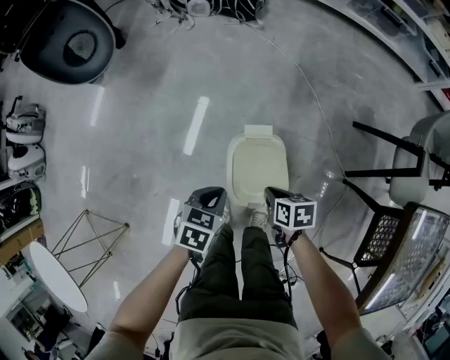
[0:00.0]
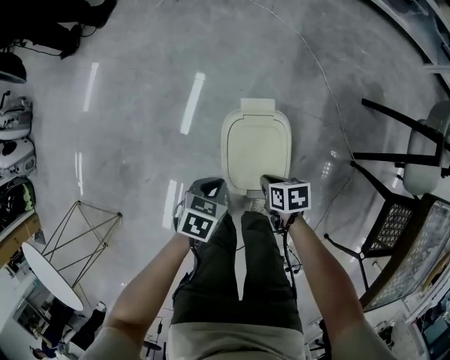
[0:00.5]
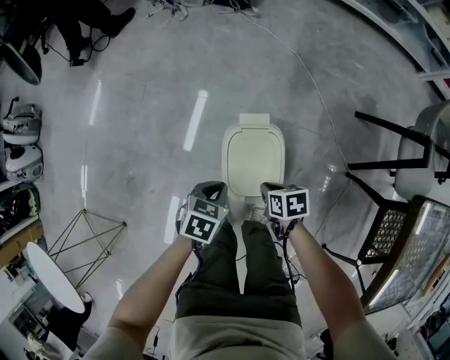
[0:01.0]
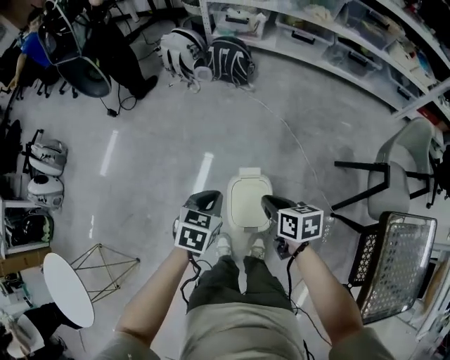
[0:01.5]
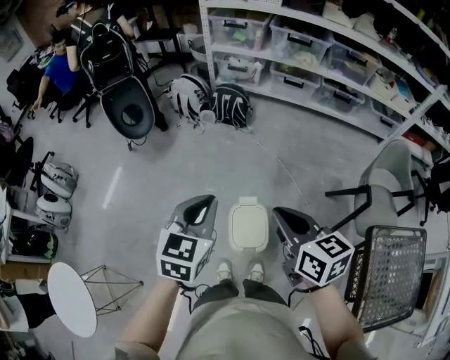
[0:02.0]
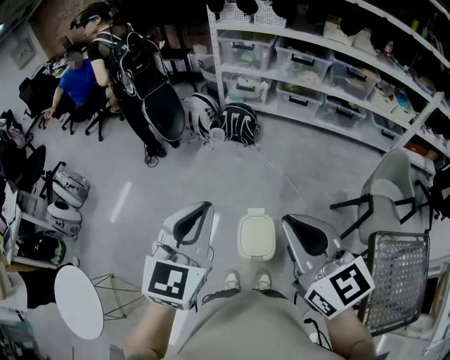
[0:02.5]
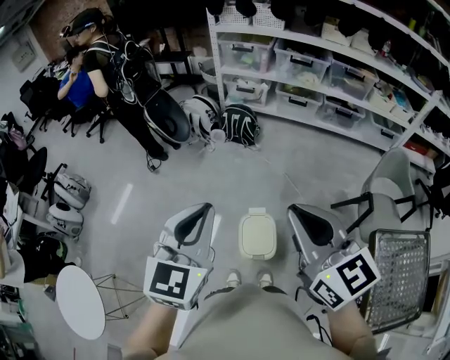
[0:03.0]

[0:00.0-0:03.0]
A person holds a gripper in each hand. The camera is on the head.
0:00.0 to 0:01.5: Both grippers travel together upward, roughly 20 cm. The right gripper turns by approximately 20 degrees.
0:01.5 to 0:03.0: The two grippers go about 40 cm upward. The left gripper tilts its fingers about 40 degrees upward, while the right gripper angles its fingers upward, by roughly 40 degrees.

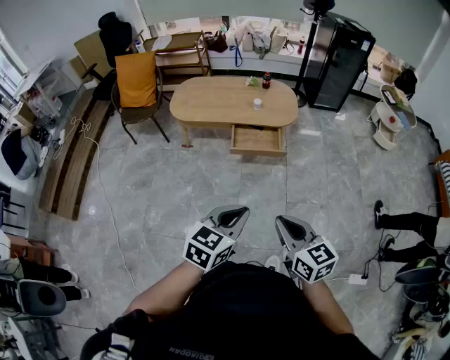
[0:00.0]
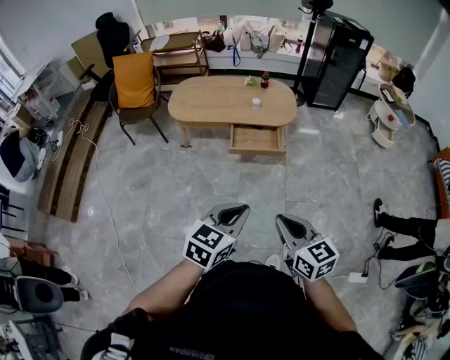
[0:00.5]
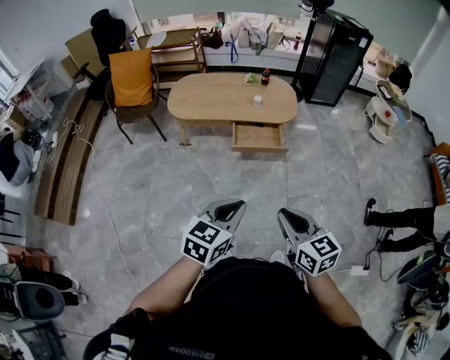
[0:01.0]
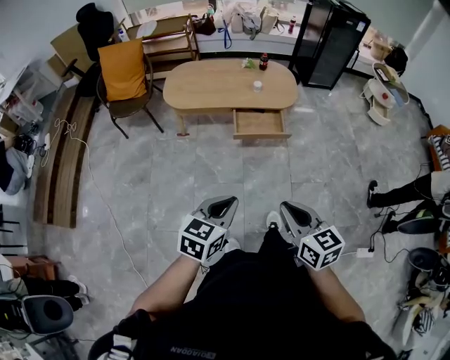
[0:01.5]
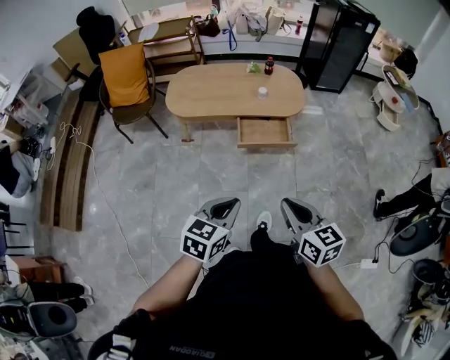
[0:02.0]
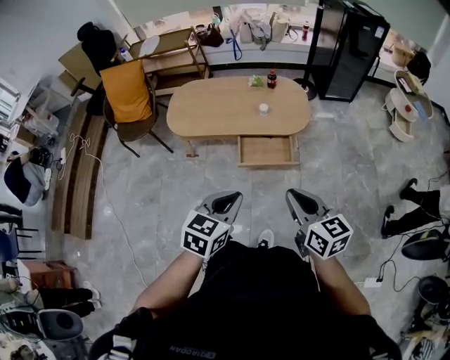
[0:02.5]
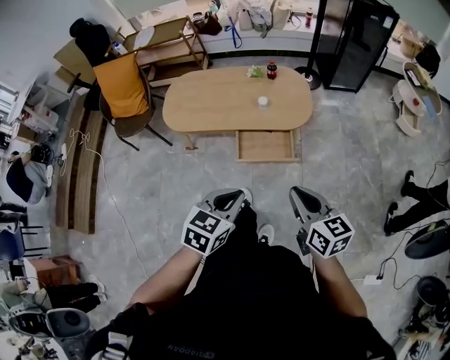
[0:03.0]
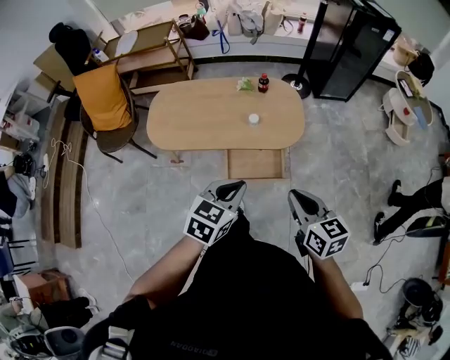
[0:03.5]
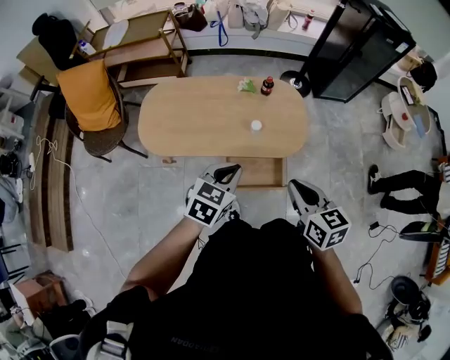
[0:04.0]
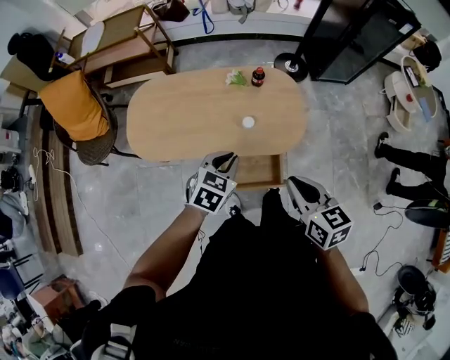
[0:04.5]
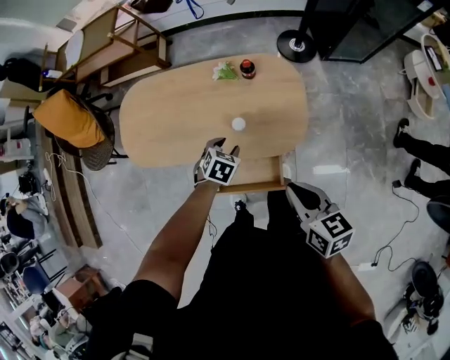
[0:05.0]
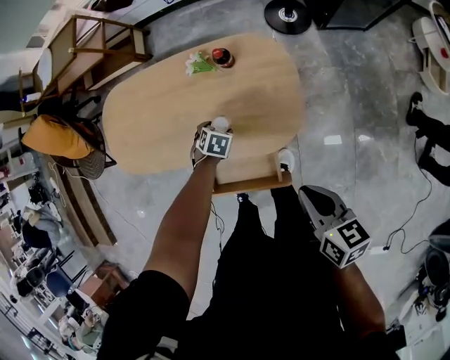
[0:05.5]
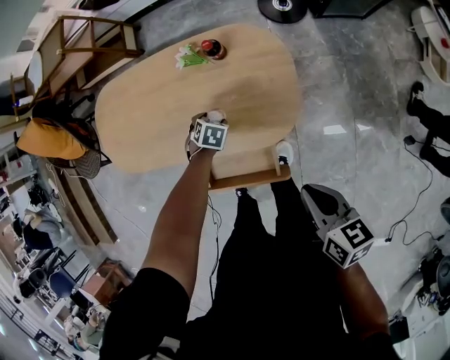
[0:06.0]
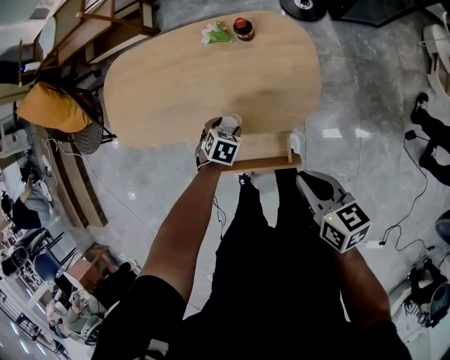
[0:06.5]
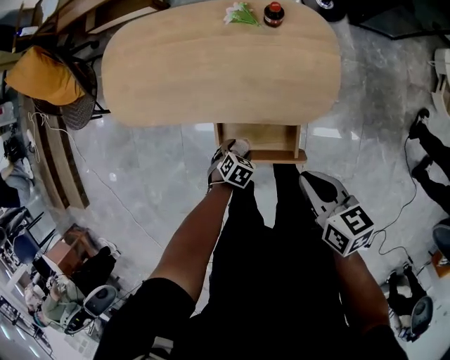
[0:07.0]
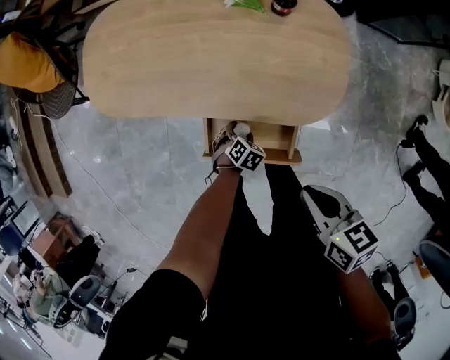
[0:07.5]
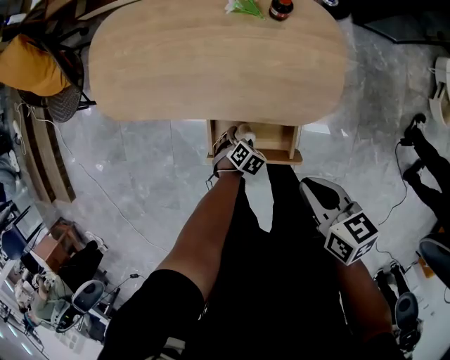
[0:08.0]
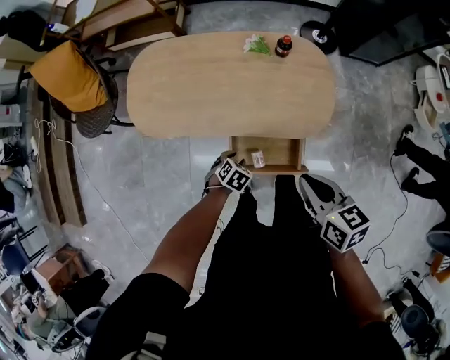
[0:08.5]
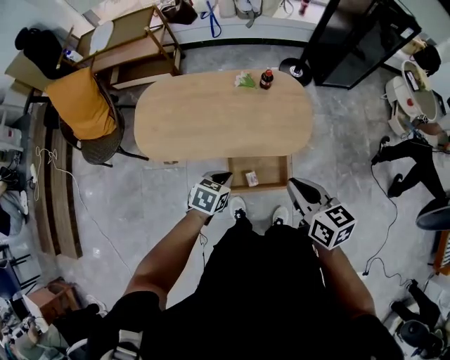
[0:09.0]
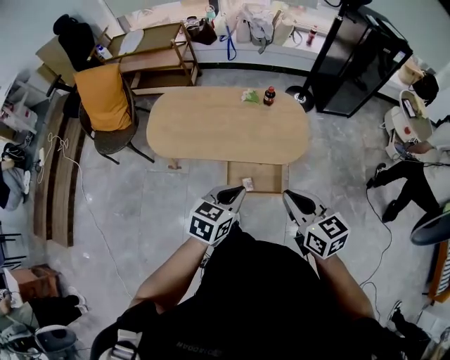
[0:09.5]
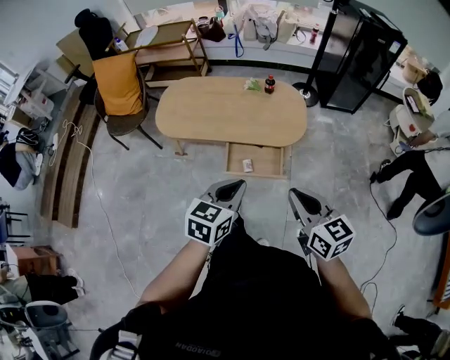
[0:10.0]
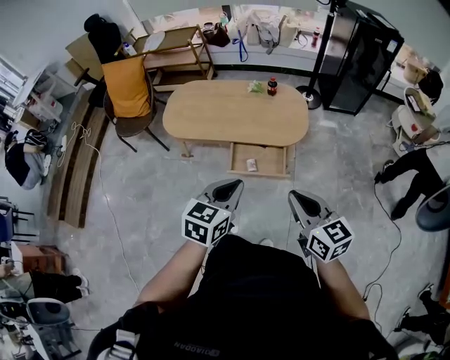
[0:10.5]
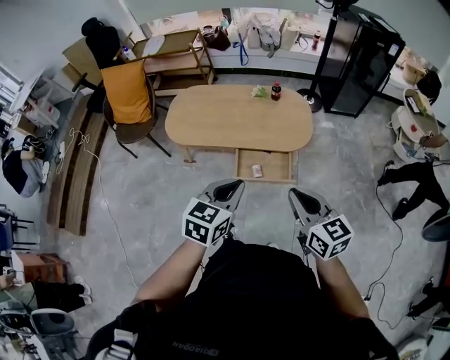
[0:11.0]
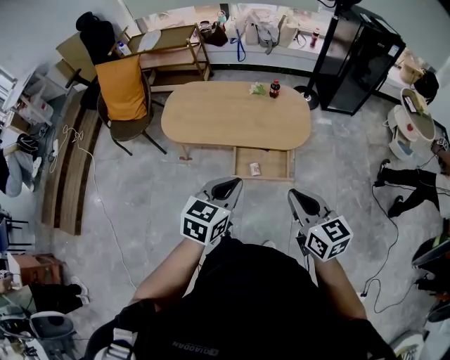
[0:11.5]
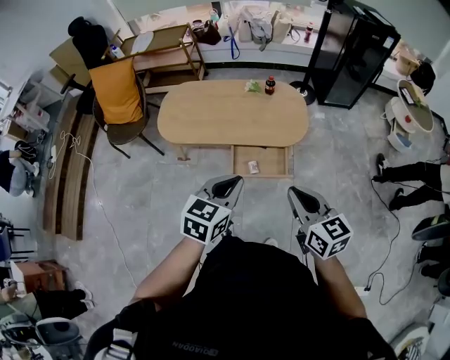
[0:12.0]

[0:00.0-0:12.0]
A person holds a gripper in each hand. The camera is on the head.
0:00.0 to 0:02.0: The left gripper shifts about 15 cm to the left, forward and downward. Meanwhile the right gripper heads forward and to the left, covering roughly 15 cm.
0:02.0 to 0:04.0: Both grippers are carried forward, roughly 50 cm.
0:04.0 to 0:06.0: The right gripper ends up about 30 cm from where it was, and turns by approximately 20 degrees. The left gripper moves downward, about 40 cm, points its fingers roughly 40 degrees further downward, and opens.
0:06.0 to 0:08.0: The left gripper shifts by some 25 cm; the right gripper shifts by some 15 cm.
0:08.0 to 0:10.0: The left gripper moves upward, some 60 cm, tips its fingers upward by some 50 degrees, and closes its fingers, while the right gripper moves roughly 40 cm, and changes its angle by roughly 40 degrees.
0:10.0 to 0:12.0: The two grippers go some 5 cm to the left.

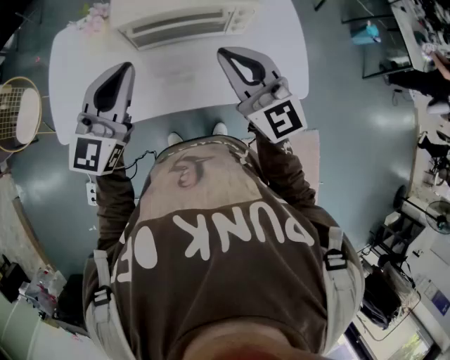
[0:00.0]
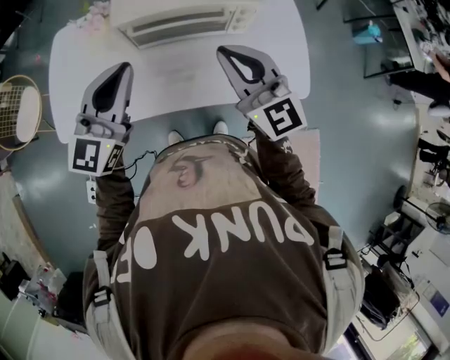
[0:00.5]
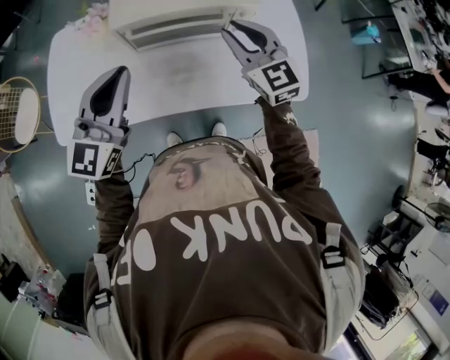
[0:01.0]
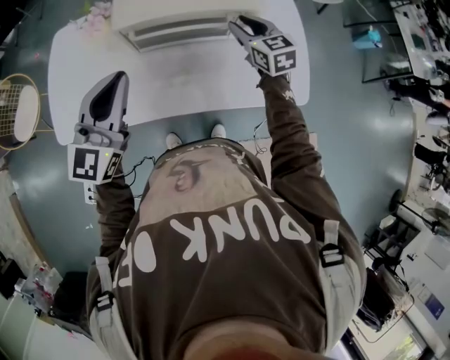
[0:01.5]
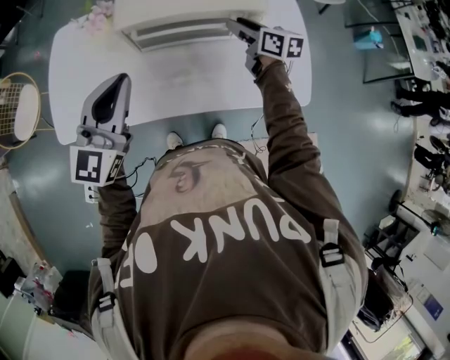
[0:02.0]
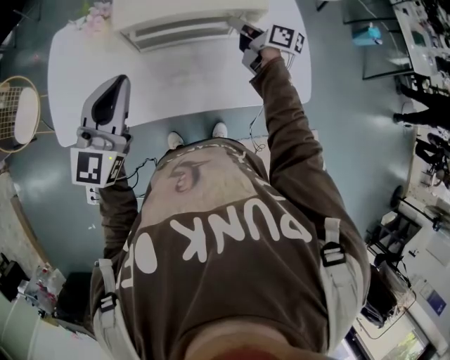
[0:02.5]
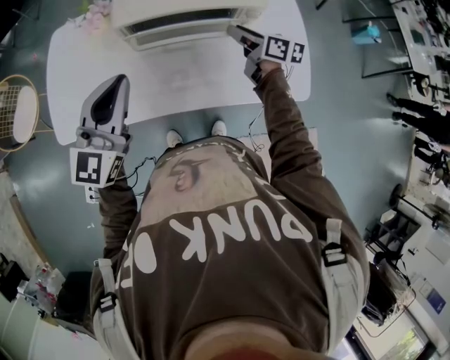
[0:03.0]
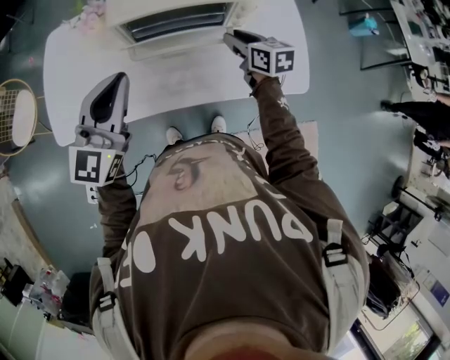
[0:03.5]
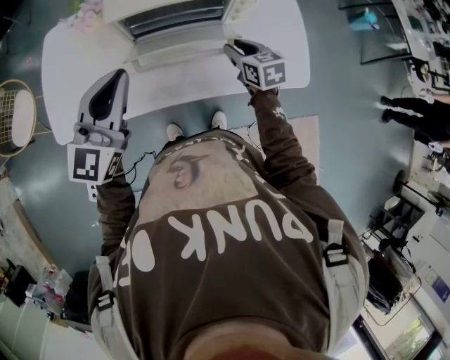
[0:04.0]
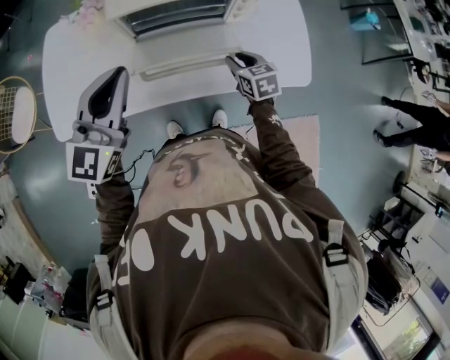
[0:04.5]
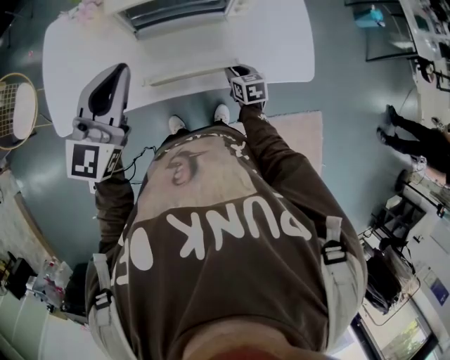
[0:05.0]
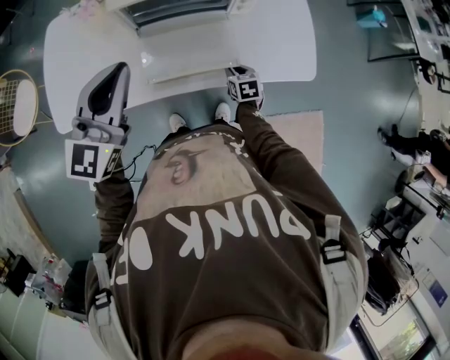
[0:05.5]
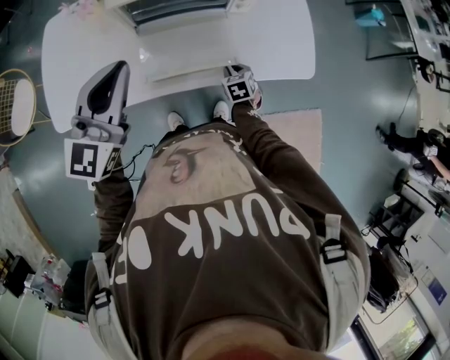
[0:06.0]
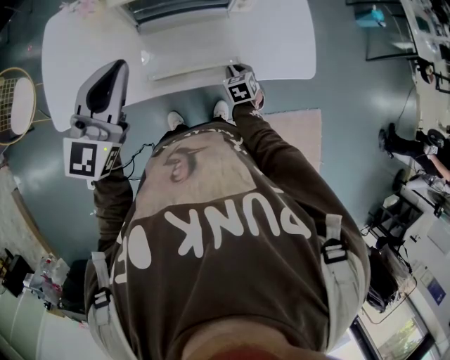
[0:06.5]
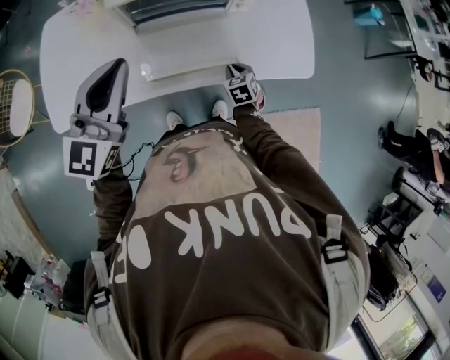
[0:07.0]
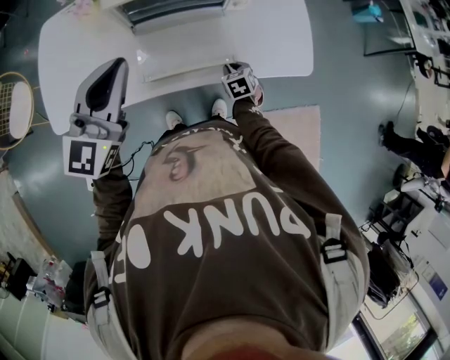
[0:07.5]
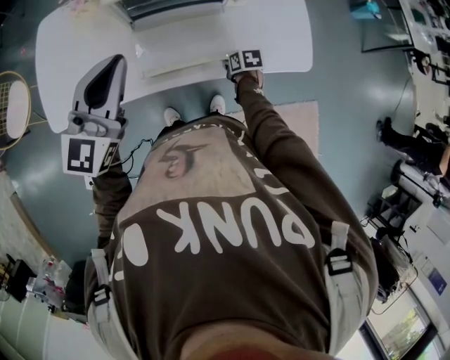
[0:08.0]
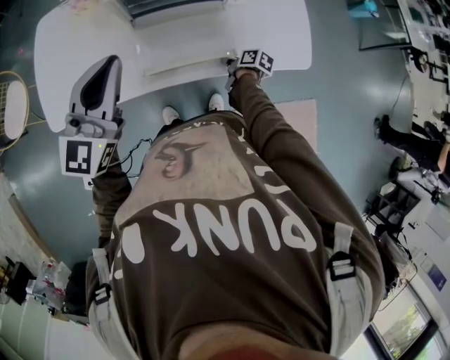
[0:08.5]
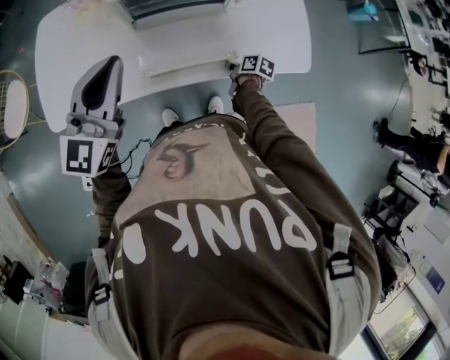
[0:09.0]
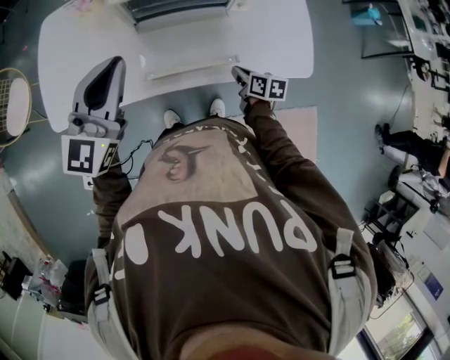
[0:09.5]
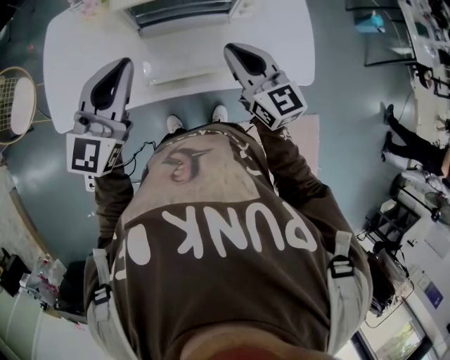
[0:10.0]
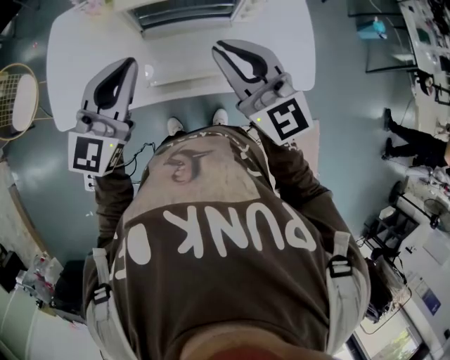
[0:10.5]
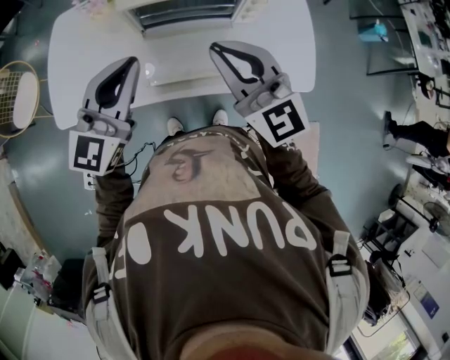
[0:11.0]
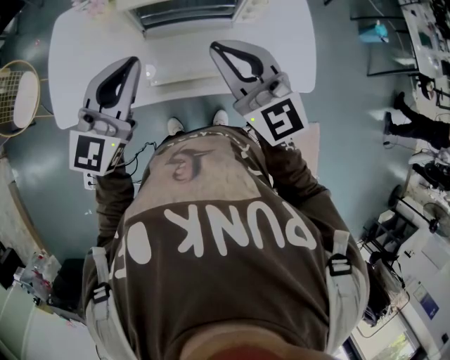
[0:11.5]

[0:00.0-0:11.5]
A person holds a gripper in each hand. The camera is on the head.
0:00.0 to 0:02.0: The right gripper travels forward and downward by some 25 cm, twists about 40 degrees clockwise, seen from behind, and opens.
0:02.0 to 0:04.0: The right gripper goes approximately 15 cm backward and downward, and changes its angle by roughly 20 degrees.
0:04.0 to 0:06.0: The right gripper is displaced downward and backward by roughly 20 cm, and turns by approximately 20 degrees.
0:06.0 to 0:07.5: The grippers move only a little.
0:07.5 to 0:09.5: The right gripper moves upward, approximately 10 cm, and changes its angle by approximately 40 degrees.
0:09.5 to 0:11.5: The right gripper shifts about 35 cm upward, and rotates around the line of its fingers by about 60 degrees, counterclockwise from behind.
